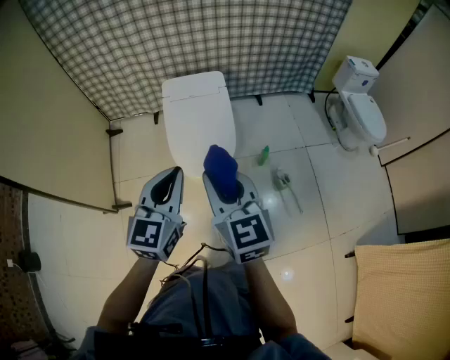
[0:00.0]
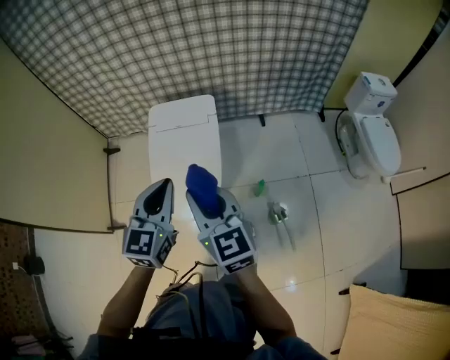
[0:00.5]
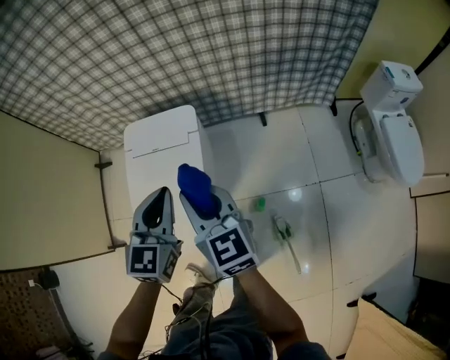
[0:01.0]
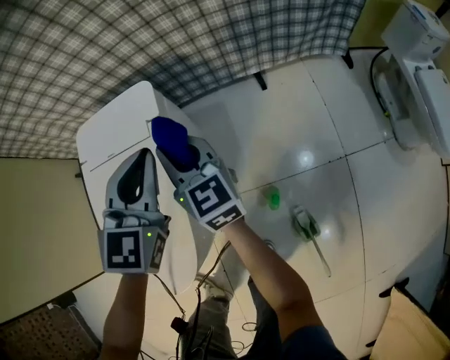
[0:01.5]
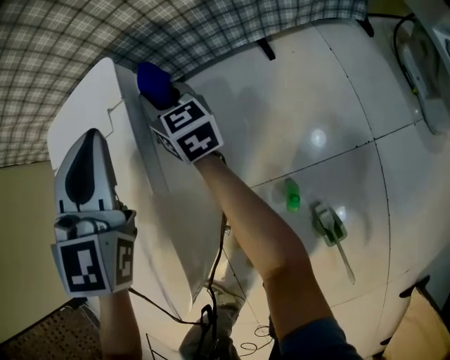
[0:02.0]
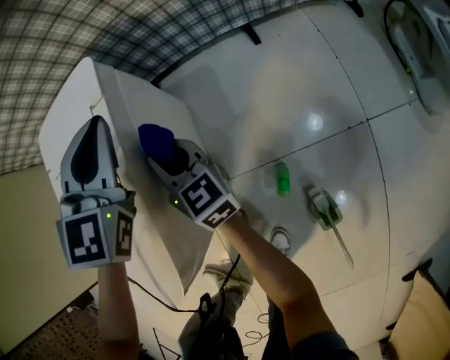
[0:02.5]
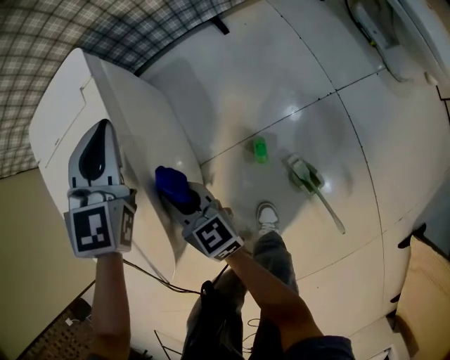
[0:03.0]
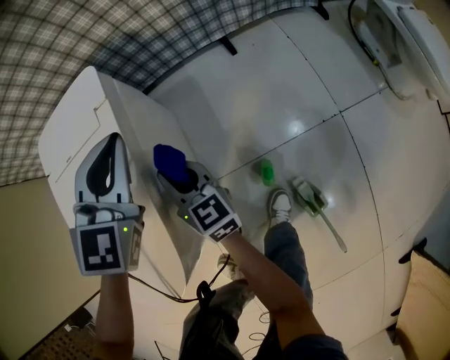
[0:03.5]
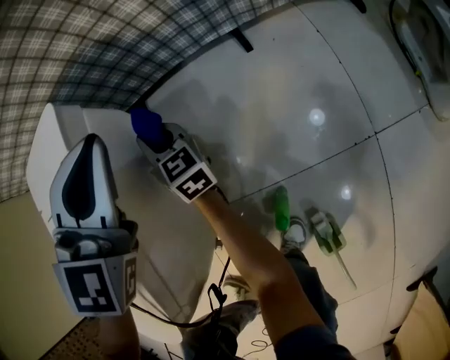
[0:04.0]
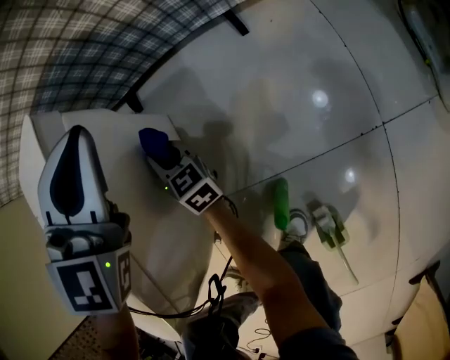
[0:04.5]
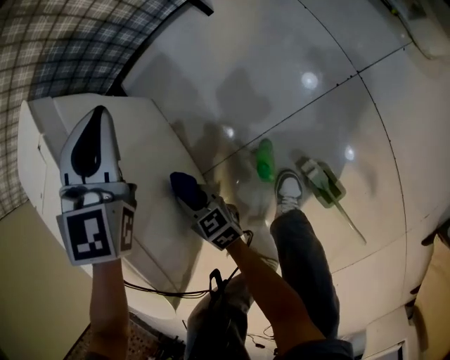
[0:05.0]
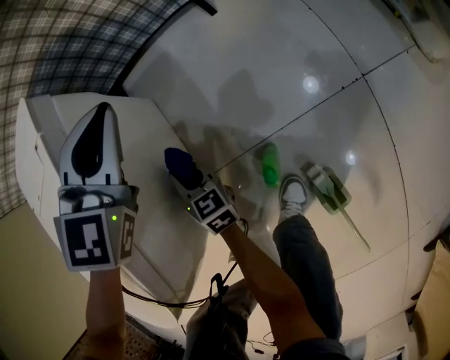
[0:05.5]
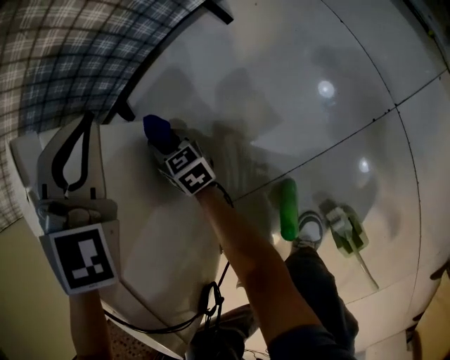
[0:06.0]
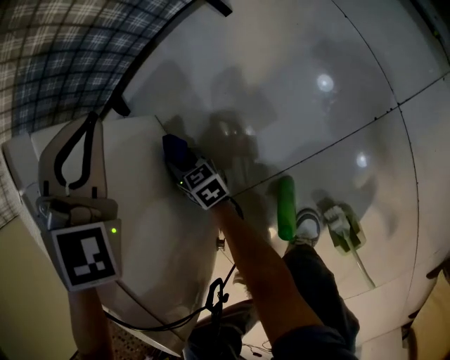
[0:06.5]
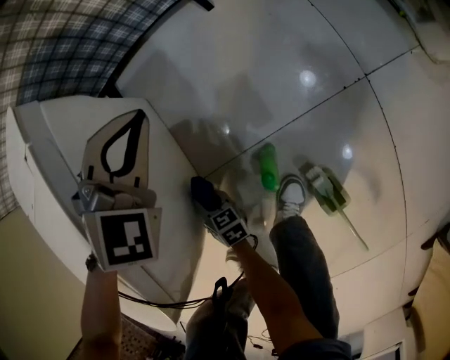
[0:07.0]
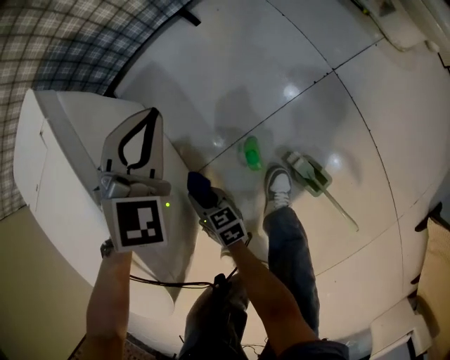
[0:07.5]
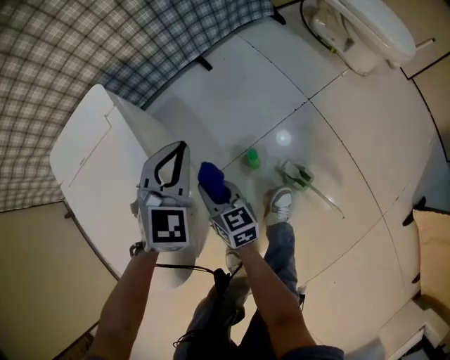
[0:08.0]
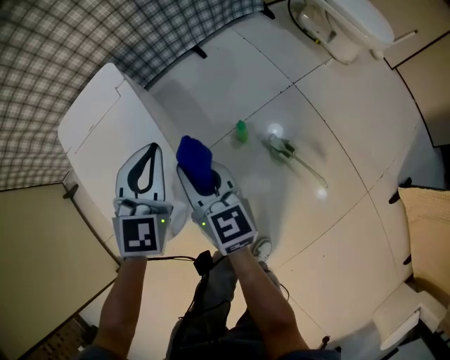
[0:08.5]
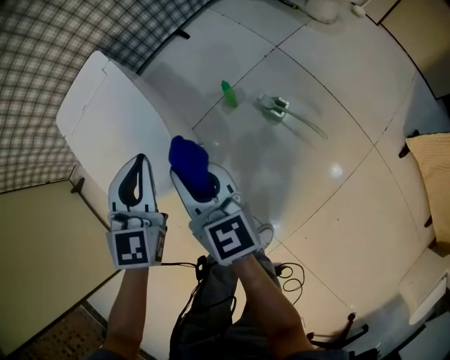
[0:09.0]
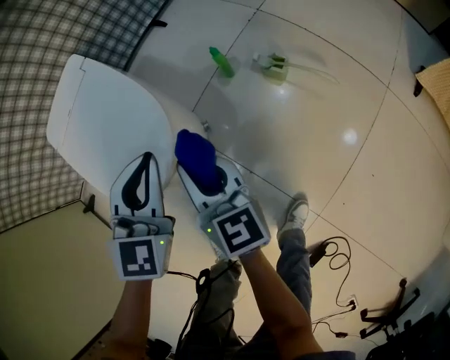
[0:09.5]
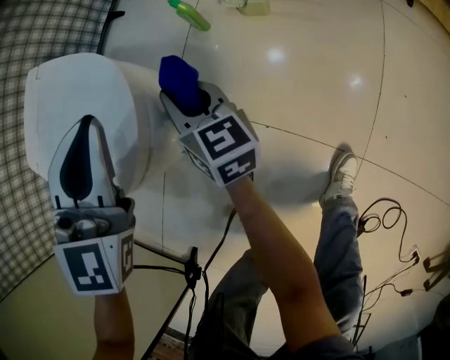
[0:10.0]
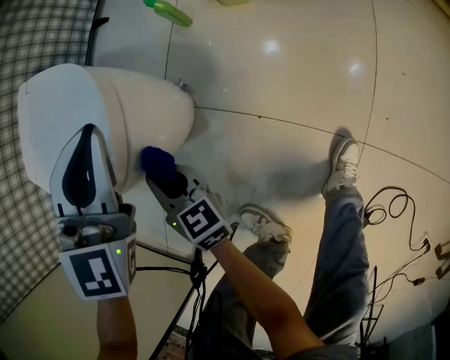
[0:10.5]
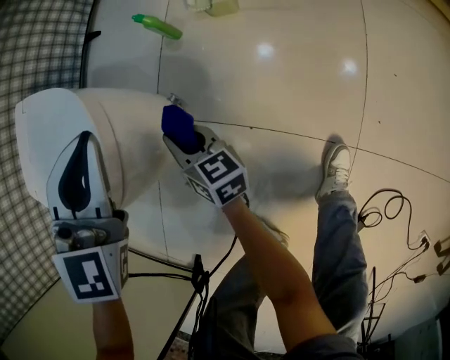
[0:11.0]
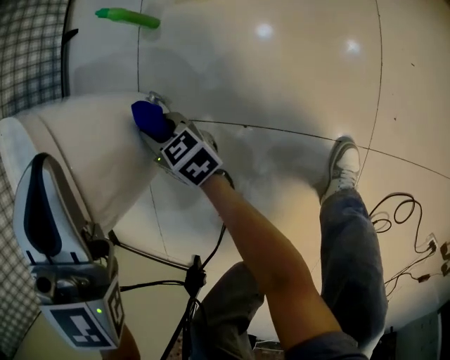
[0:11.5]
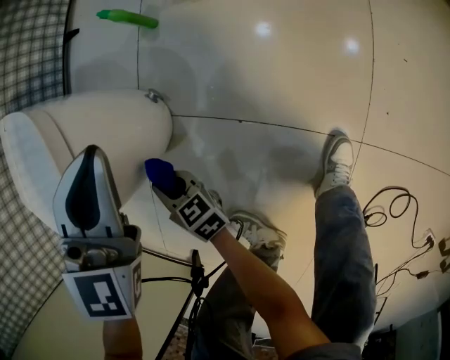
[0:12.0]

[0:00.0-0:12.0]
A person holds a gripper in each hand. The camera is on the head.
0:00.0 to 0:02.0: Both grippers are carried forward and to the right, roughly 70 cm. The two grippers go approximately 50 cm downward. The right gripper turns by about 20 degrees, while the left gripper rotates approximately 30 degrees.
0:02.0 to 0:04.0: The left gripper is displaced to the right and downward by approximately 15 cm, and travels backward and back again, roughly 10 cm each way. The right gripper moves downward, some 10 cm, and goes backward and returns, approximately 30 cm each way.
0:04.0 to 0:06.0: Both grippers travel together downward, some 15 cm. The left gripper swivels some 30 degrees. The right gripper goes backward and returns, approximately 25 cm each way.
0:06.0 to 0:08.0: Both grippers travel together backward and upward, roughly 35 cm. The left gripper changes its angle by roughly 30 degrees, while the right gripper changes its angle by approximately 20 degrees.
0:08.0 to 0:10.0: The right gripper moves some 25 cm upward and comes back, and turns by roughly 40 degrees. The left gripper moves some 15 cm upward and comes back, and turns by some 30 degrees.
0:10.0 to 0:12.0: The right gripper is displaced backward, downward and to the left by roughly 25 cm, and rotates approximately 30 degrees. The left gripper goes about 15 cm downward and to the right.

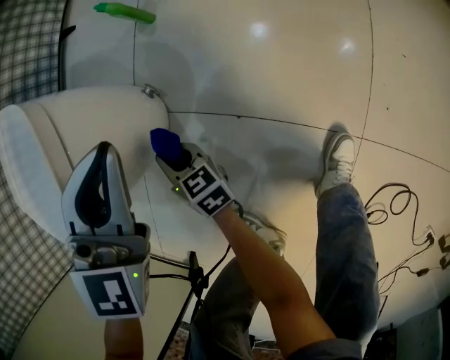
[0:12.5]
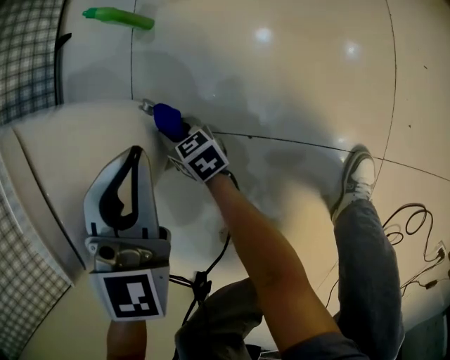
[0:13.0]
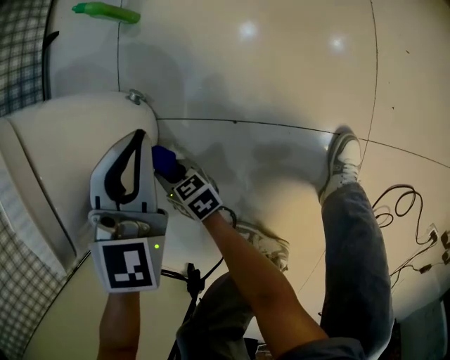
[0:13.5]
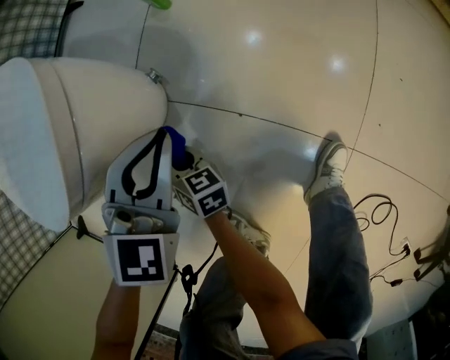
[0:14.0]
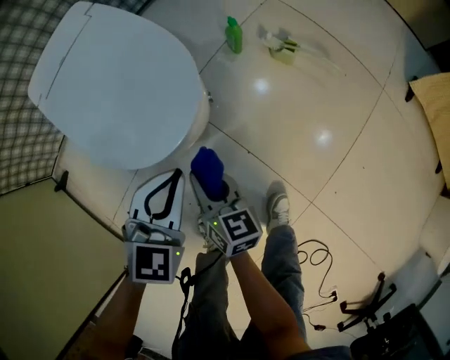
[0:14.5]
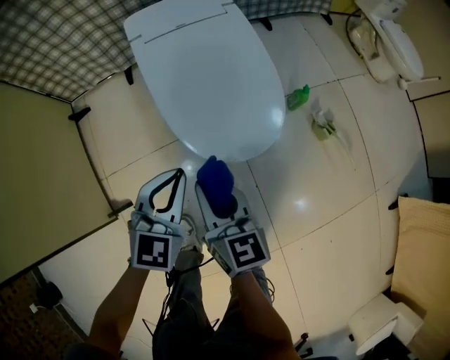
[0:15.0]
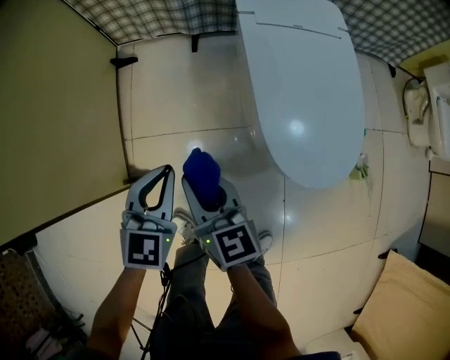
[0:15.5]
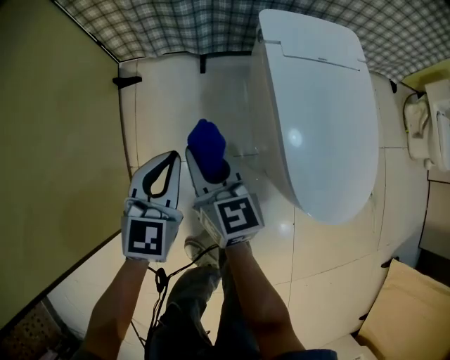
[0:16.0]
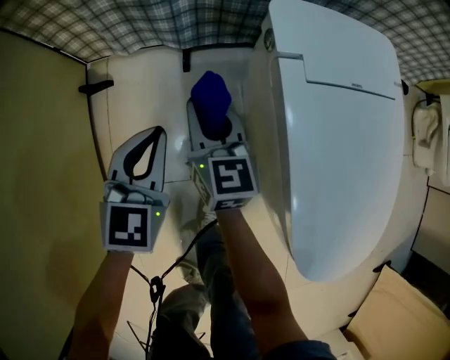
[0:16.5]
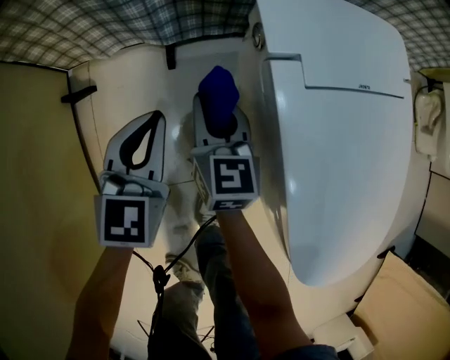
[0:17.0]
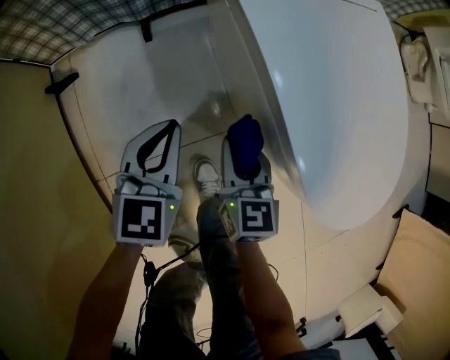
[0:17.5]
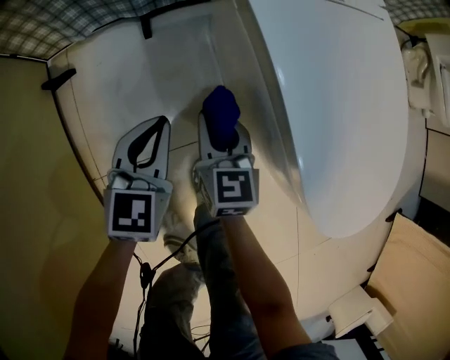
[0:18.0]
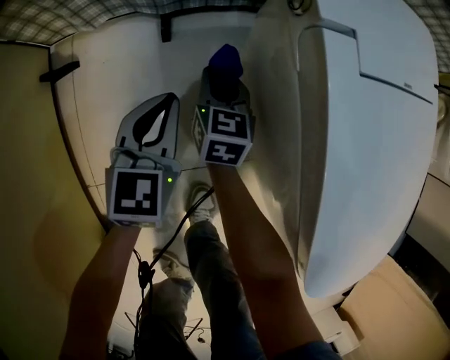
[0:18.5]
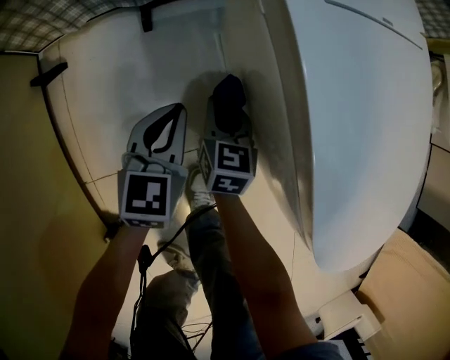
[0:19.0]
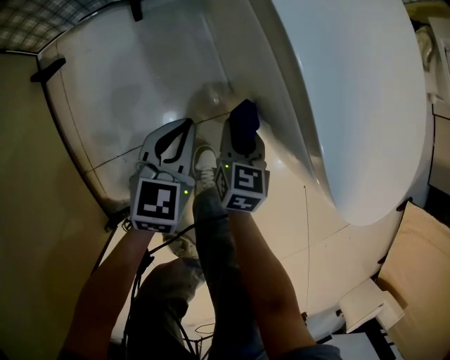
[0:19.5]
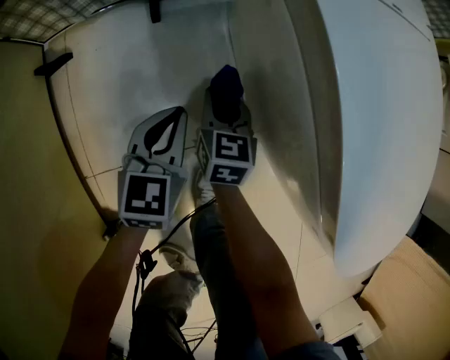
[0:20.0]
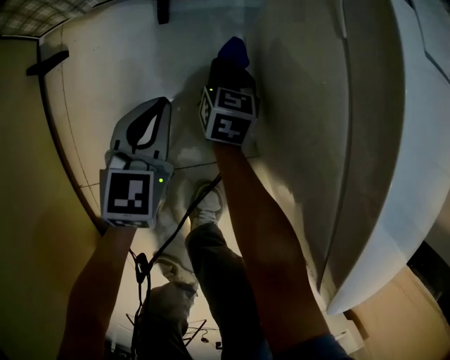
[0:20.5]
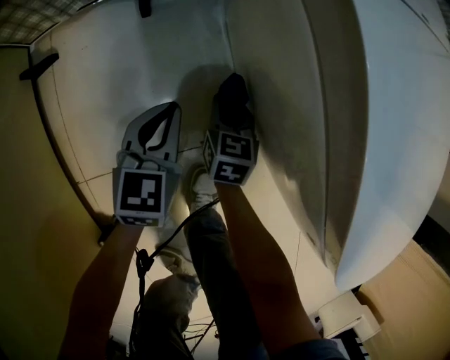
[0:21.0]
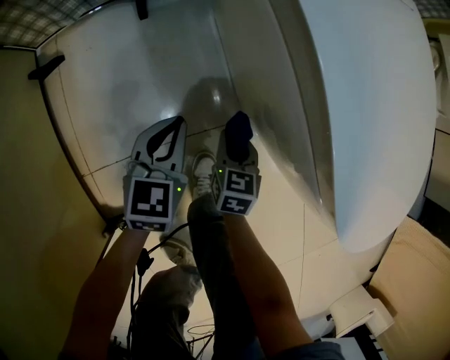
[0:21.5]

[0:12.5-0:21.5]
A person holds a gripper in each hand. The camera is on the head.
0:12.5 to 0:14.5: The left gripper heads to the left and backward, covering some 20 cm, and swivels roughly 30 degrees; the right gripper travels upward by some 20 cm.
0:14.5 to 0:17.0: Both grippers are carried approximately 60 cm. The left gripper changes its angle by roughly 50 degrees; the right gripper turns by roughly 40 degrees.
0:17.0 to 0:19.5: The right gripper moves forward and backward over roughly 25 cm, changing direction 2 times, and changes its angle by approximately 30 degrees. Meanwhile the left gripper goes forward and backward, roughly 20 cm each way, reversing 2 times.
0:19.5 to 0:21.5: The left gripper travels forward and back again, roughly 15 cm each way; the right gripper travels downward by some 5 cm, and reaches approximately 25 cm forward, then returns.

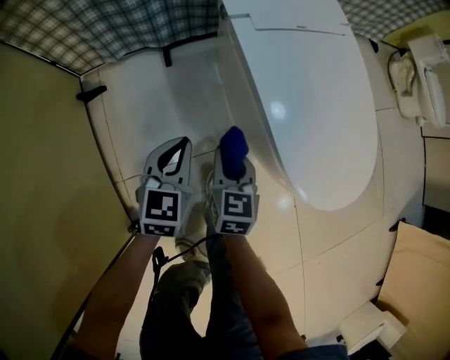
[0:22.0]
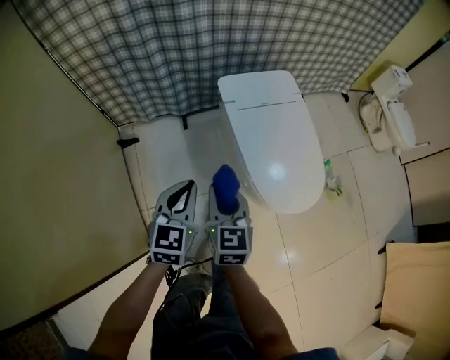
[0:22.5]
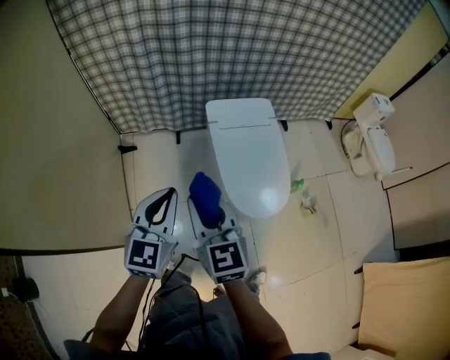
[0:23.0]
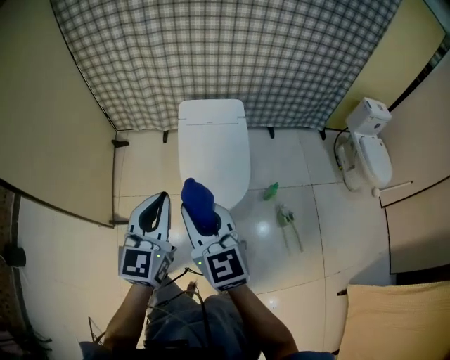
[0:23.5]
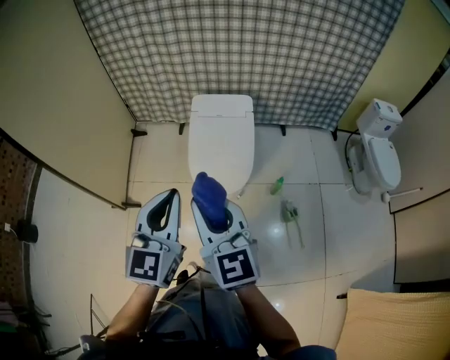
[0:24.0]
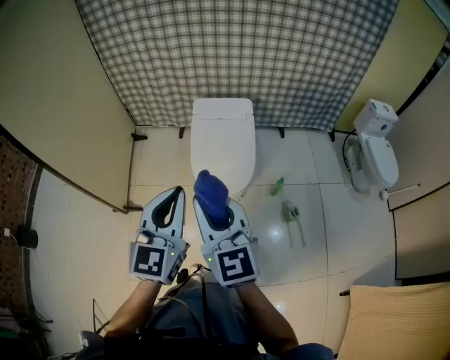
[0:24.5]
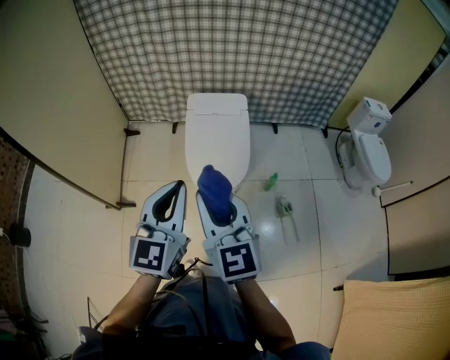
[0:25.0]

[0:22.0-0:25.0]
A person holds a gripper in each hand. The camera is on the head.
0:22.0 to 0:23.5: The grippers both shift upward by roughly 60 cm. The right gripper changes its angle by about 50 degrees. Meanwhile the left gripper rotates roughly 30 degrees.
0:23.5 to 0:25.0: The left gripper moves backward, upward and to the right, approximately 15 cm. The right gripper travels backward and upward by approximately 15 cm.

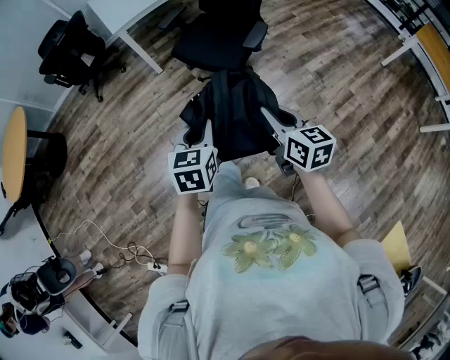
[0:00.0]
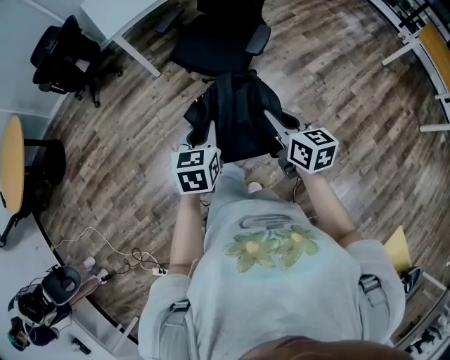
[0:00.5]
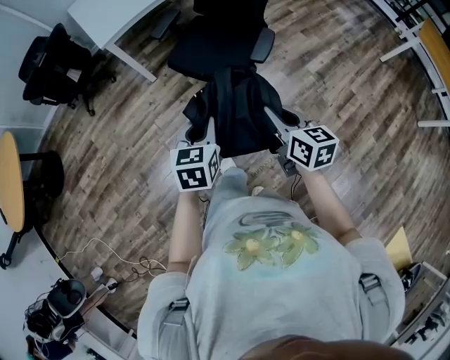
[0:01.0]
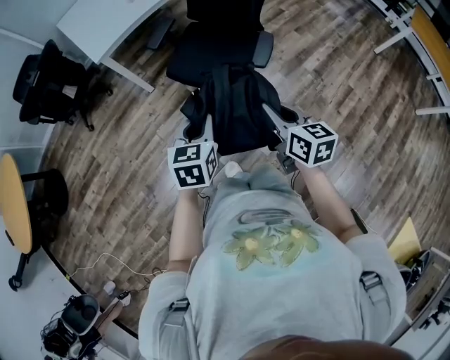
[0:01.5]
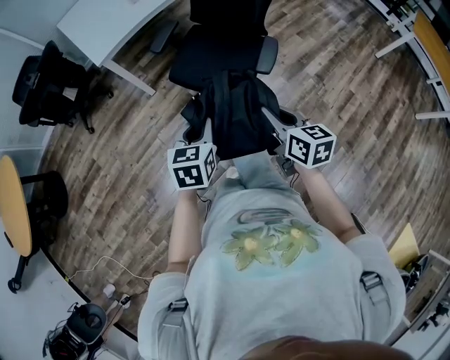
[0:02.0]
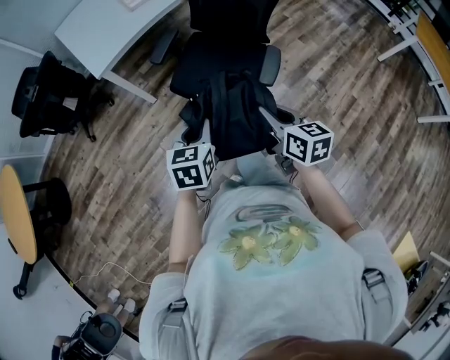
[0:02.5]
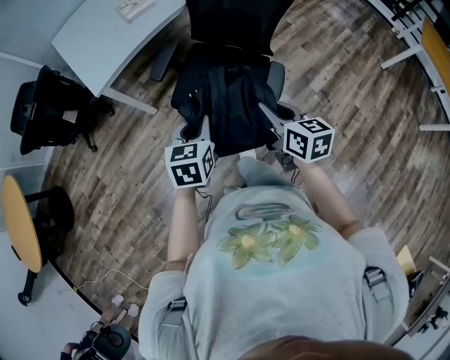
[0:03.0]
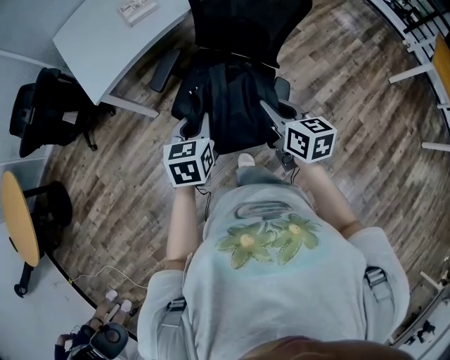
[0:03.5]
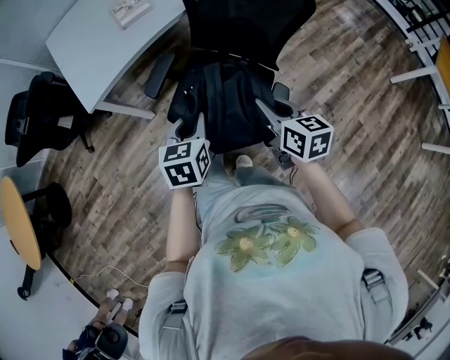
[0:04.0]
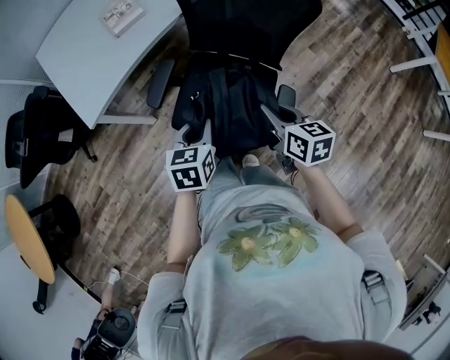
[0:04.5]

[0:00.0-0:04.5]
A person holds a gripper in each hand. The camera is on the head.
0:00.0 to 0:02.0: Both grippers travel together forward, roughly 25 cm.
0:02.0 to 0:04.5: The two grippers go roughly 35 cm forward.
